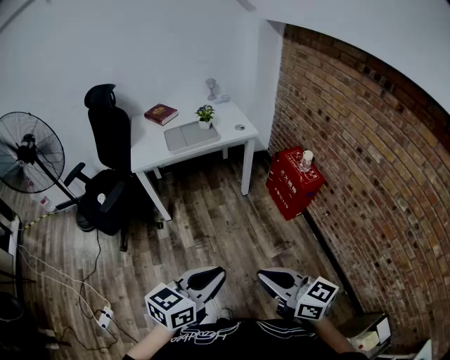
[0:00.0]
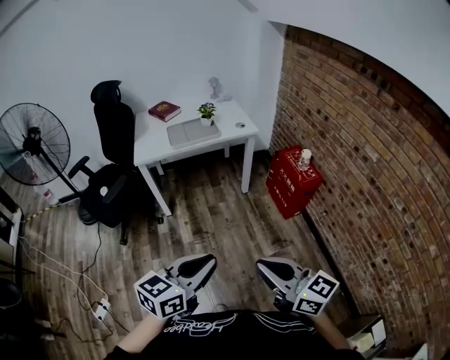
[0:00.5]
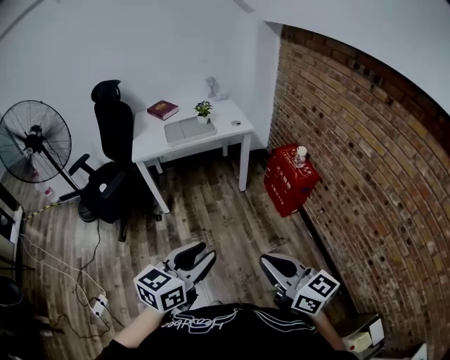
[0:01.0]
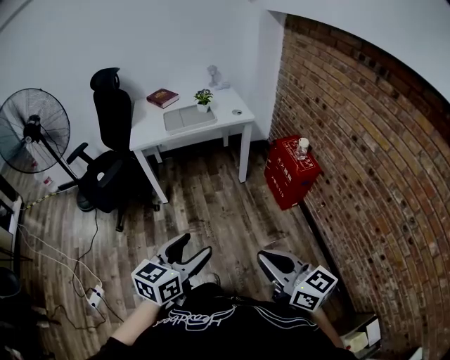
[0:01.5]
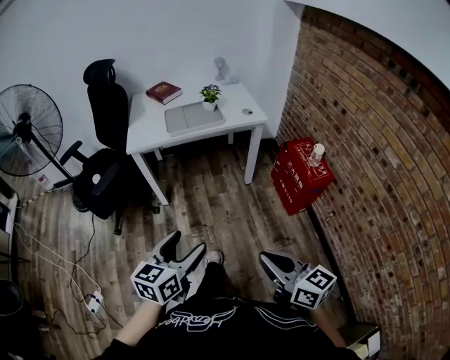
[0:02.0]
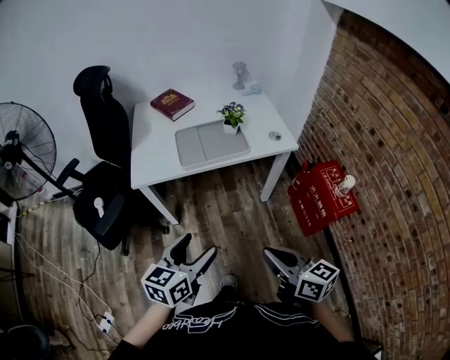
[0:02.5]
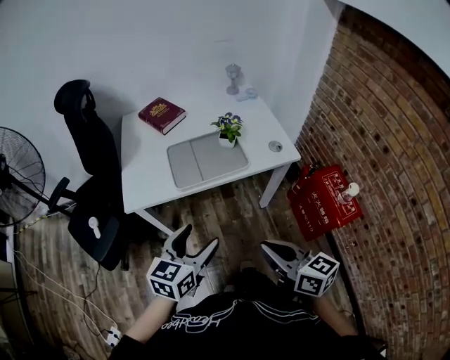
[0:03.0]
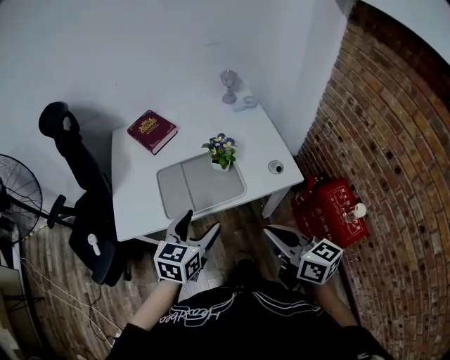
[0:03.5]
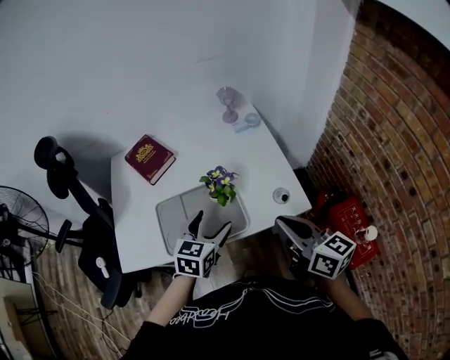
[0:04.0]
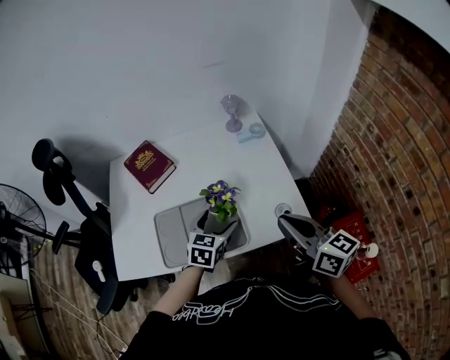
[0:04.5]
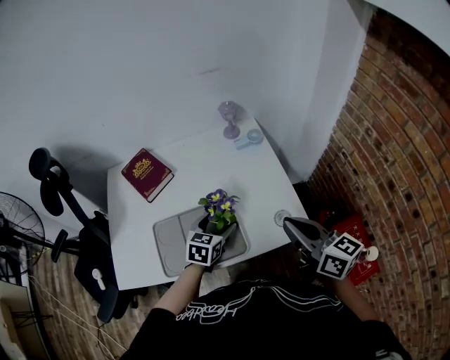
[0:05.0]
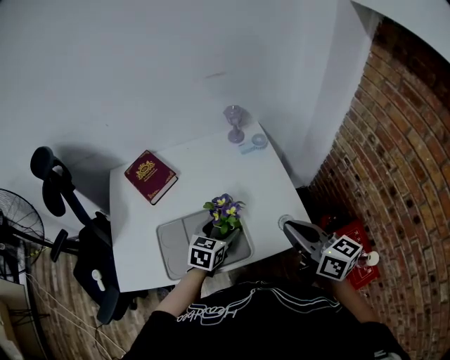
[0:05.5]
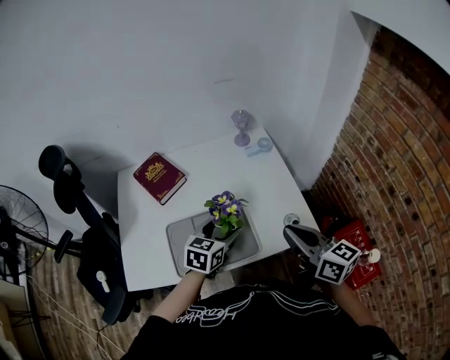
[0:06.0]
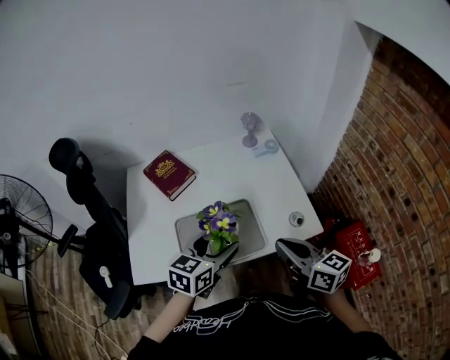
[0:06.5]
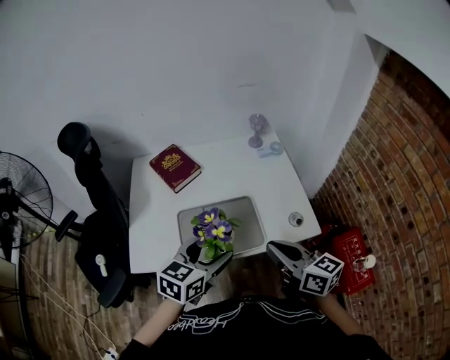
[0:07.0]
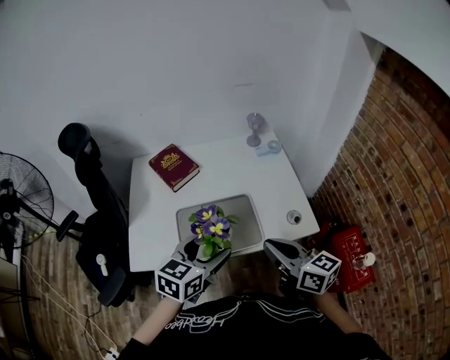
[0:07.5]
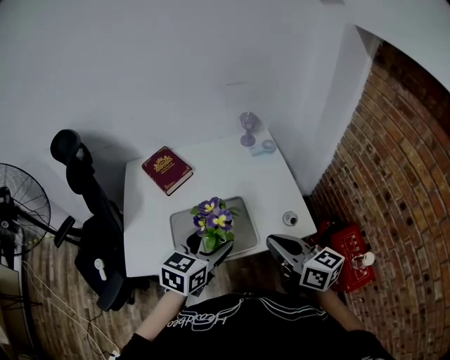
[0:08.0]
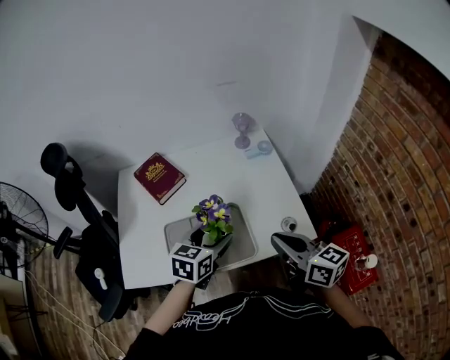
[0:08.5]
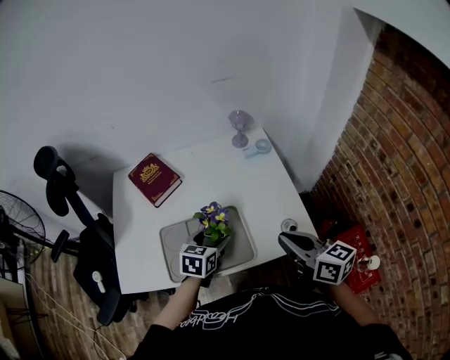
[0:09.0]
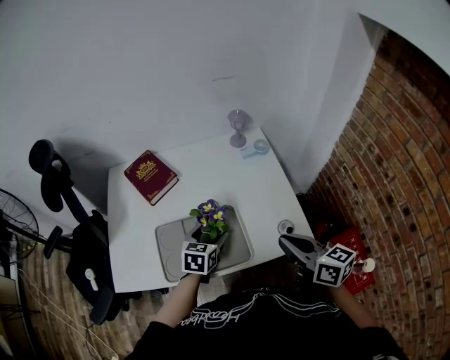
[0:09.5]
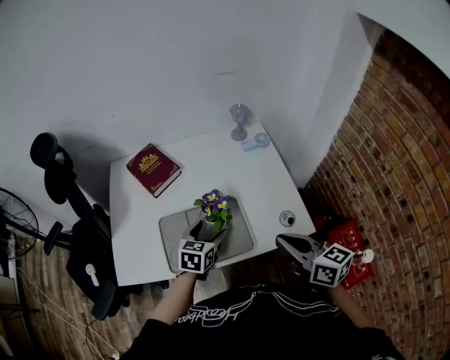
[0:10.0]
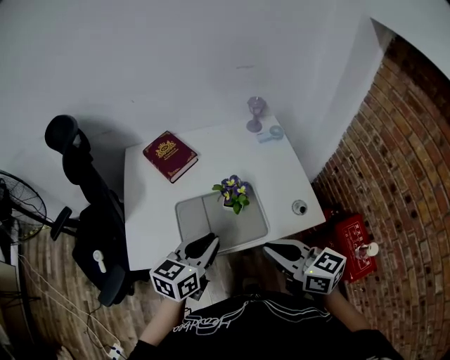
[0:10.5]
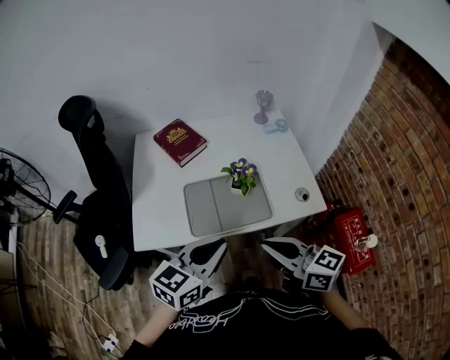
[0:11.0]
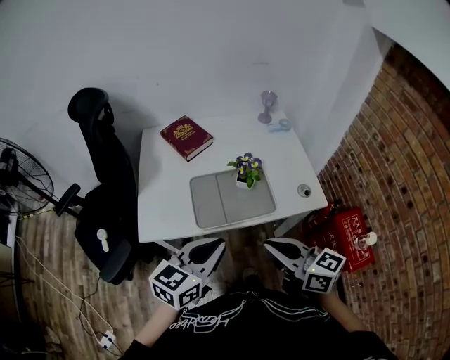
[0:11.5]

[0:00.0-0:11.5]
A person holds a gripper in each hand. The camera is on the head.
0:00.0 to 0:02.0: Both grippers move forward and downward, some 15 cm. The left gripper rotates approximately 20 degrees, and opens.
0:02.0 to 0:04.0: Both grippers are carried forward, about 60 cm.
0:04.0 to 0:06.0: Both grippers travel together forward, about 5 cm.
0:06.0 to 0:07.5: The right gripper heads to the left and backward, covering about 10 cm. Meanwhile the left gripper heads backward, upward and to the left, covering about 15 cm.
0:07.5 to 0:09.5: The left gripper goes roughly 20 cm downward and forward; the right gripper travels to the right and forward by approximately 10 cm.
0:09.5 to 0:11.5: The right gripper moves to the left and backward, approximately 25 cm, while the left gripper is displaced backward, upward and to the left by about 35 cm, changes its angle by some 30 degrees, and closes up.

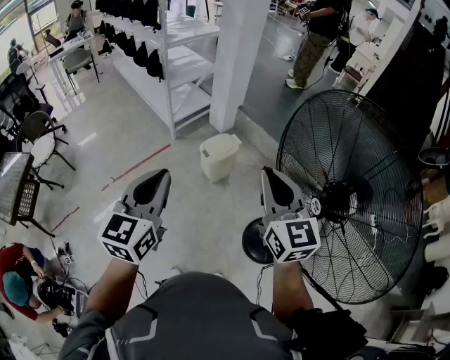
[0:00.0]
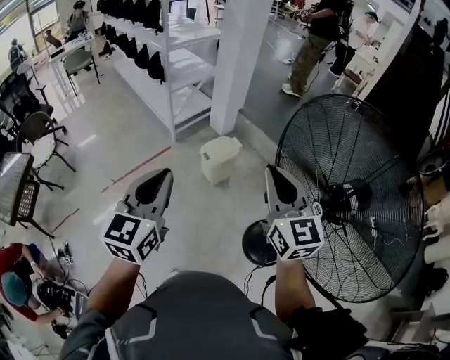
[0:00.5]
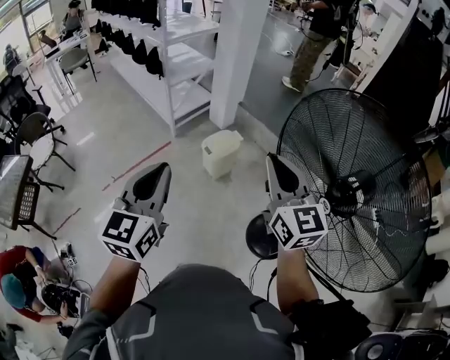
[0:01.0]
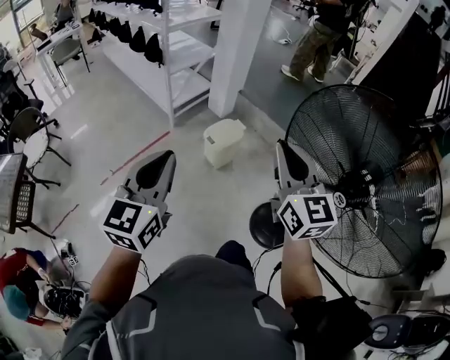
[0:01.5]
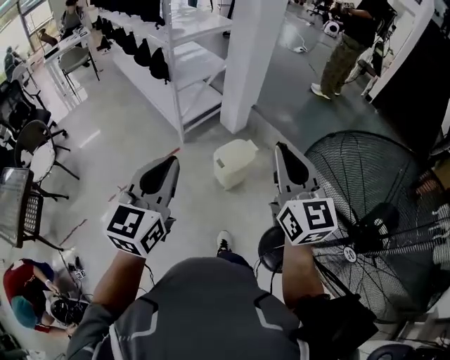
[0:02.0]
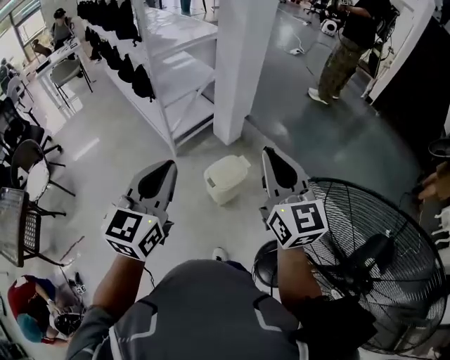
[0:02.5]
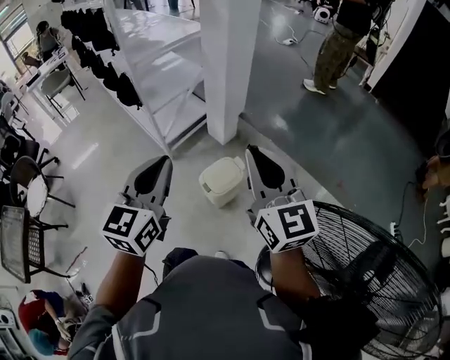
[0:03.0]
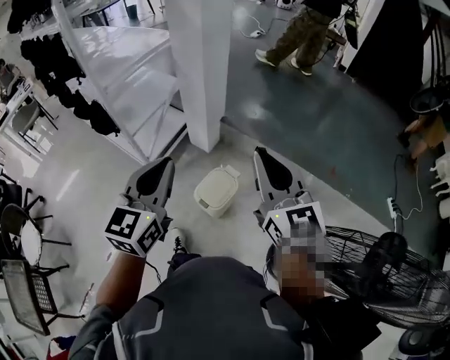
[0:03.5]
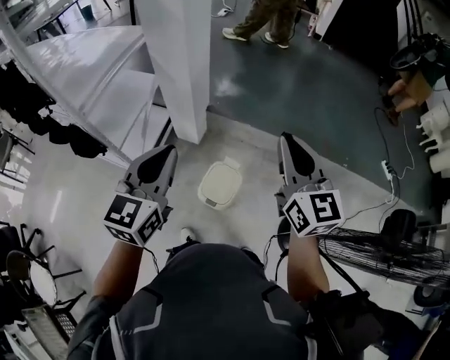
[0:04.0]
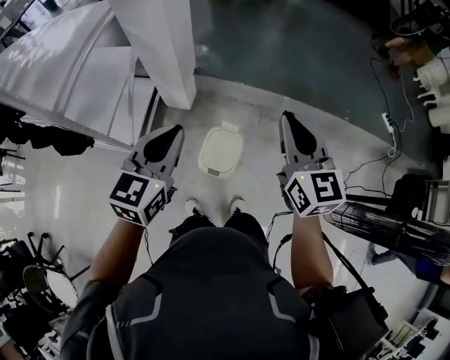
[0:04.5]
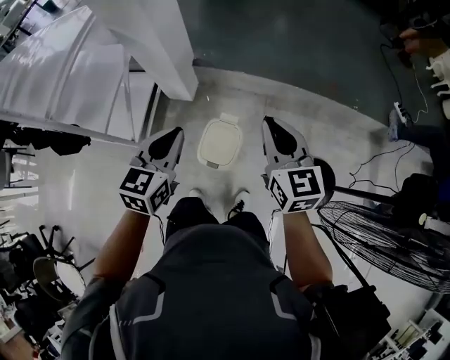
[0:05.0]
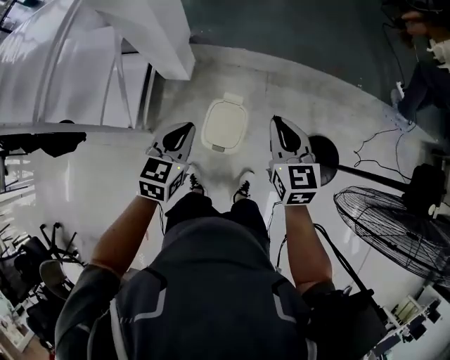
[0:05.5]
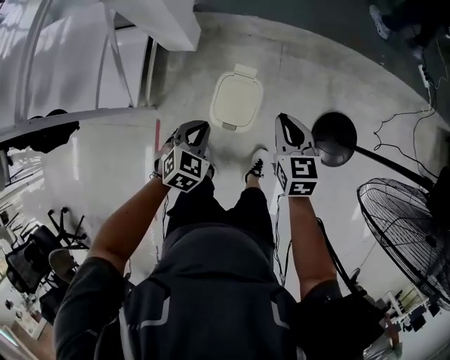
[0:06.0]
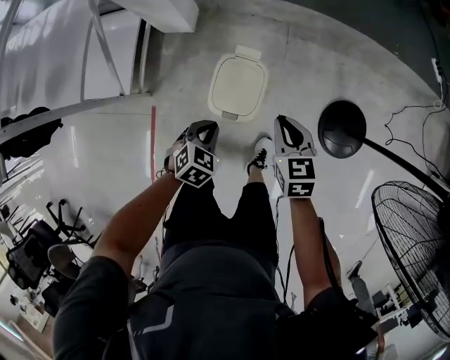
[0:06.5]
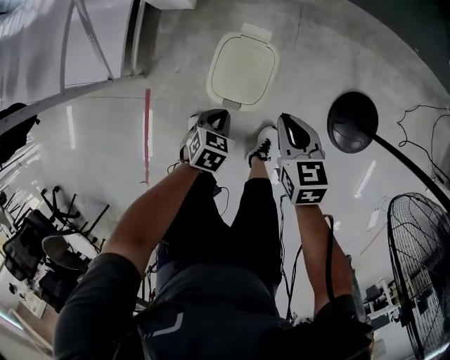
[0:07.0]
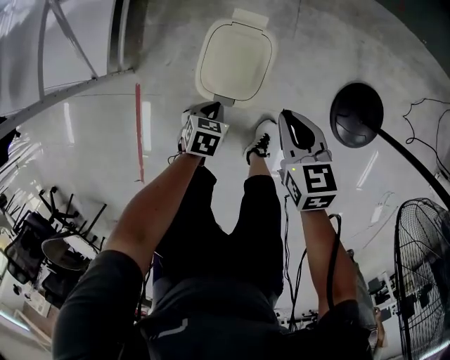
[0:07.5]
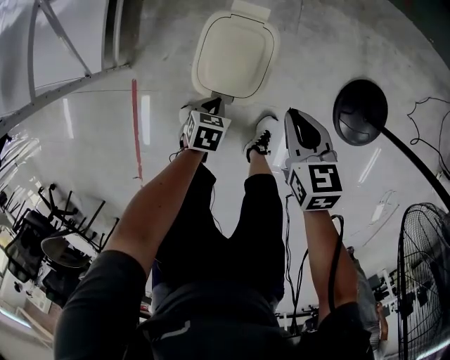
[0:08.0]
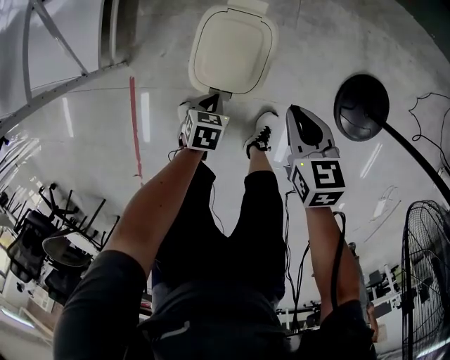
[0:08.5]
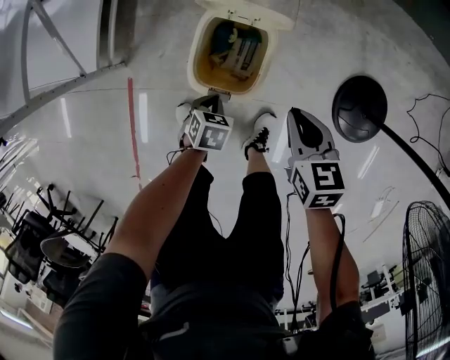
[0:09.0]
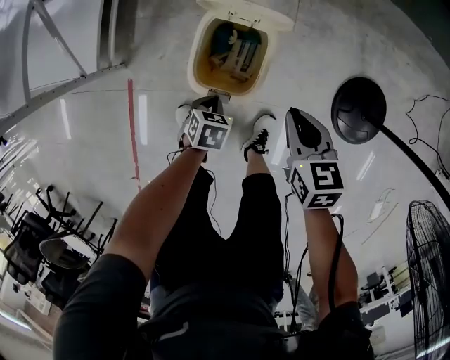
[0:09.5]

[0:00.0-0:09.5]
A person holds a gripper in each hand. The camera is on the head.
0:00.0 to 0:02.0: Both grippers travel together forward and to the left, about 20 cm.
0:02.0 to 0:04.0: The left gripper moves about 50 cm, and swivels approximately 30 degrees, while the right gripper changes place by approximately 35 cm, and changes its angle by some 30 degrees.
0:04.0 to 0:05.5: Both grippers move downward, some 25 cm. The left gripper swivels roughly 30 degrees. Meanwhile the right gripper turns by some 30 degrees.
0:05.5 to 0:07.5: The two grippers go approximately 40 cm downward. The right gripper turns by some 30 degrees. The left gripper points its fingers approximately 40 degrees further downward.
0:07.5 to 0:09.5: The right gripper shifts by roughly 5 cm.

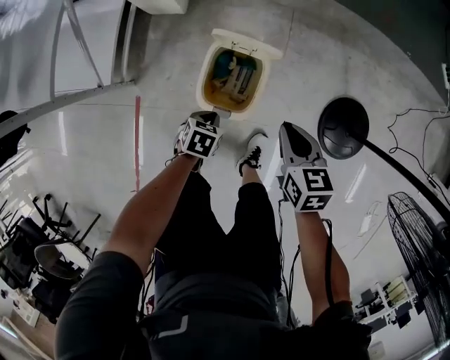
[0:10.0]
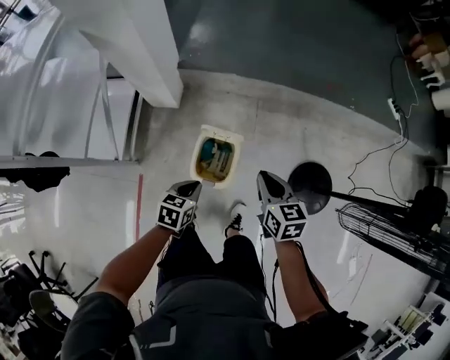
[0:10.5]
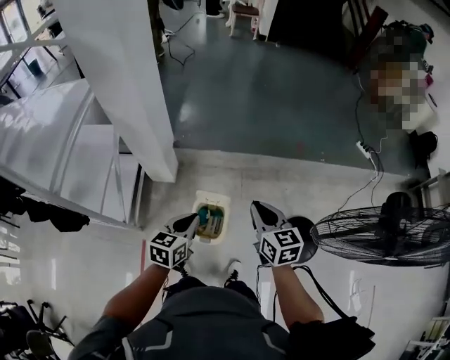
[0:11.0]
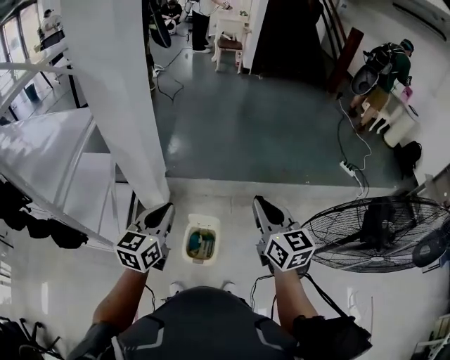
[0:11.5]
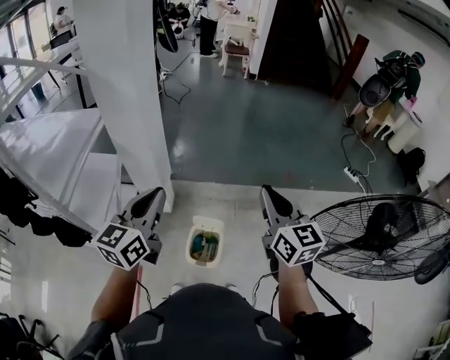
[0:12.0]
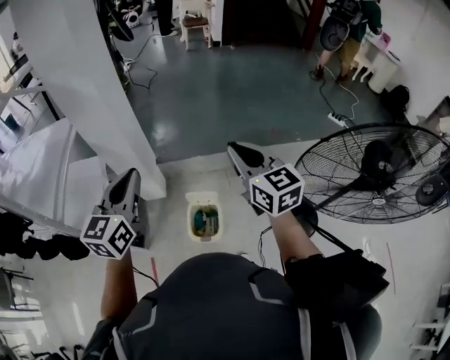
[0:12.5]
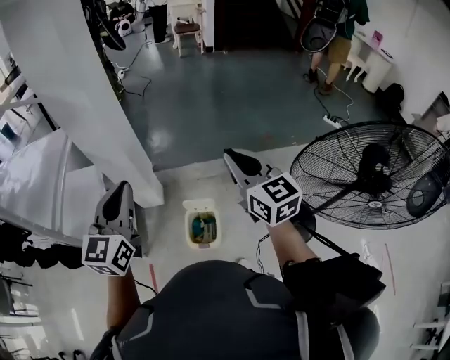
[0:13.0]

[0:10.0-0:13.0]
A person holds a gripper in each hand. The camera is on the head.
0:10.0 to 0:11.5: The two grippers go approximately 60 cm upward. The right gripper points its fingers some 40 degrees further upward; the left gripper tilts its fingers approximately 60 degrees upward.
0:11.5 to 0:13.0: The right gripper travels upward by roughly 5 cm; the left gripper shifts some 15 cm upward.

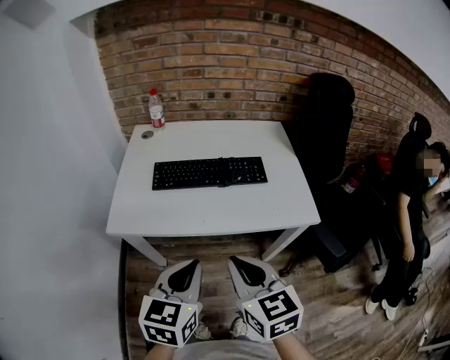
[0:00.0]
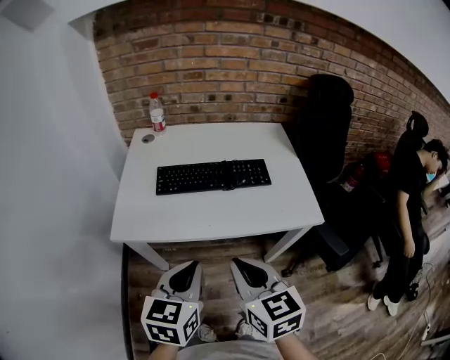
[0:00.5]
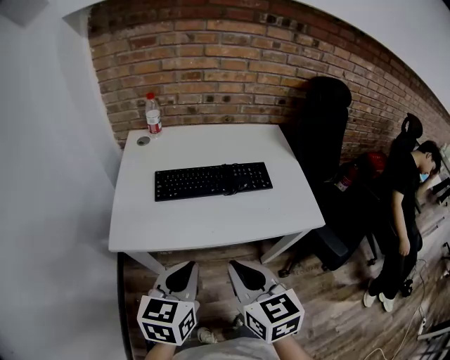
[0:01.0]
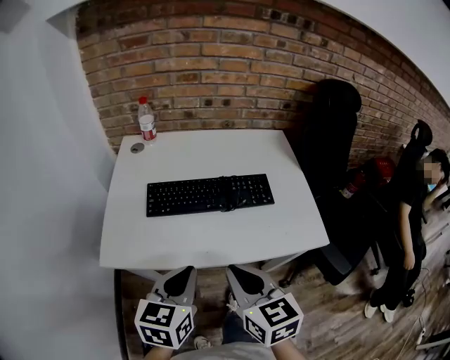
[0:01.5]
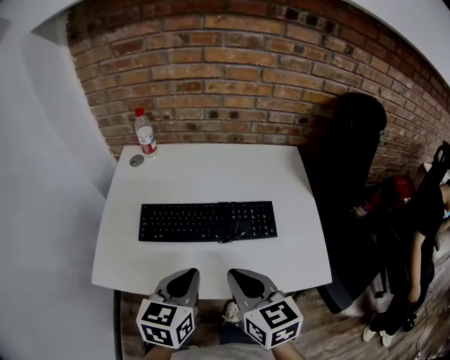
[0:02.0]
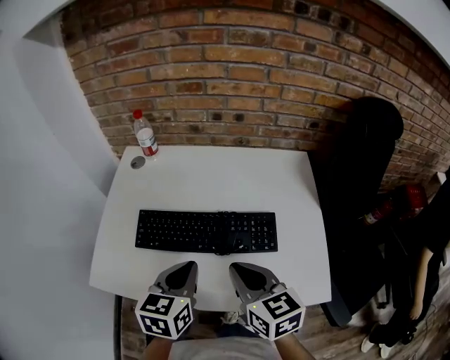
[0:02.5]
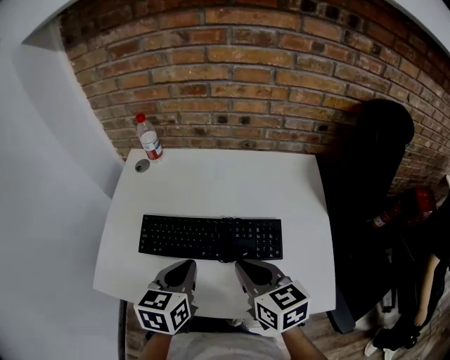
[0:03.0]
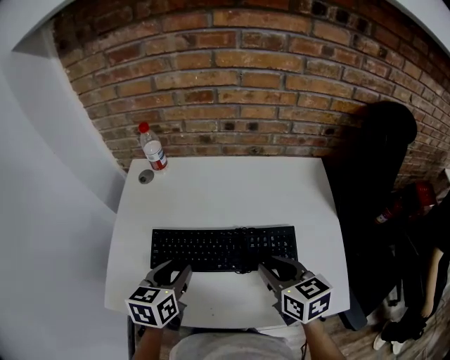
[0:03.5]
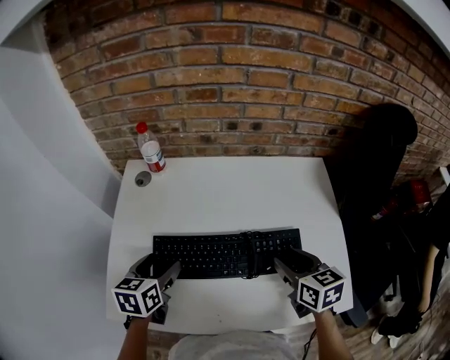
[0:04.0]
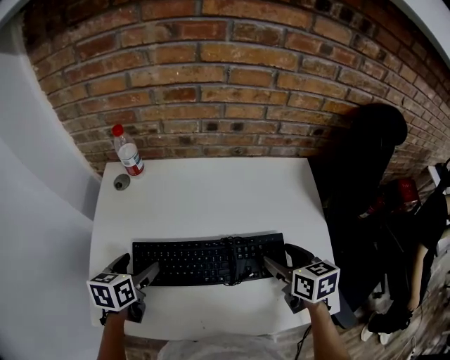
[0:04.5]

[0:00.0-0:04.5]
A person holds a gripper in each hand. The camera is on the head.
0:00.0 to 0:02.0: The grippers both shift forward by about 20 cm.
0:02.0 to 0:04.5: The right gripper travels forward, to the right and downward by about 25 cm, and opens. The left gripper shifts about 25 cm forward, to the left and downward, and opens its fingers.
